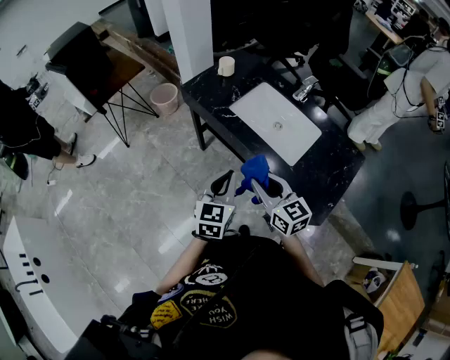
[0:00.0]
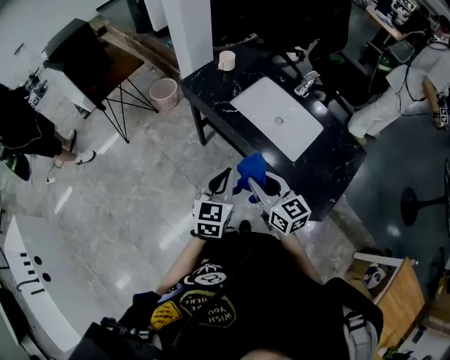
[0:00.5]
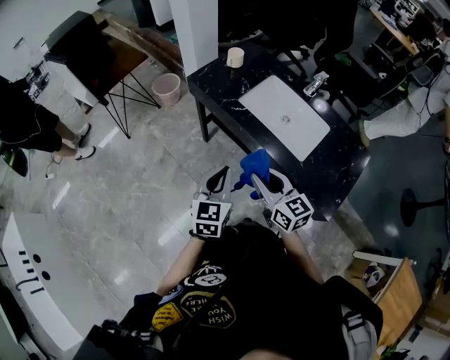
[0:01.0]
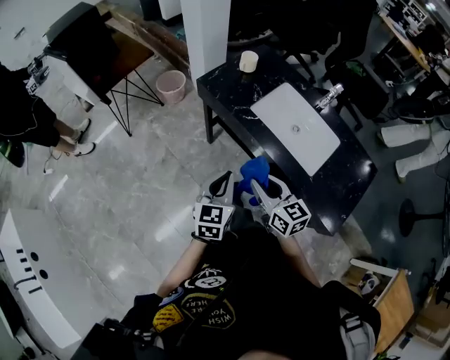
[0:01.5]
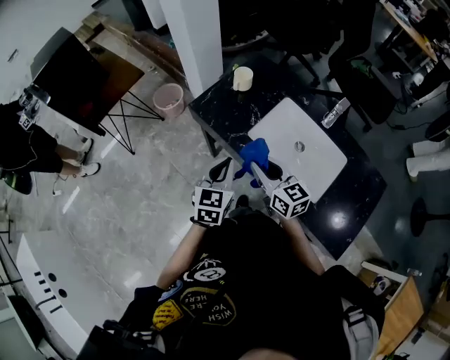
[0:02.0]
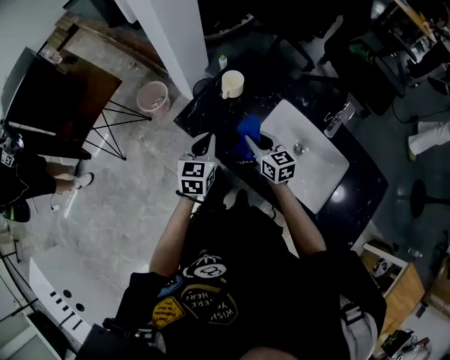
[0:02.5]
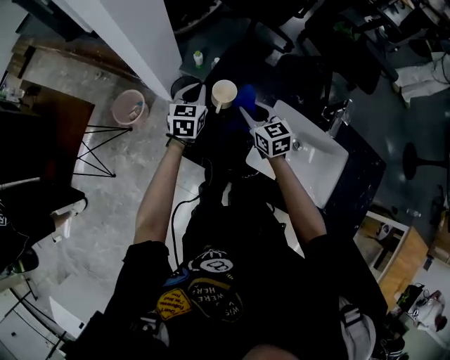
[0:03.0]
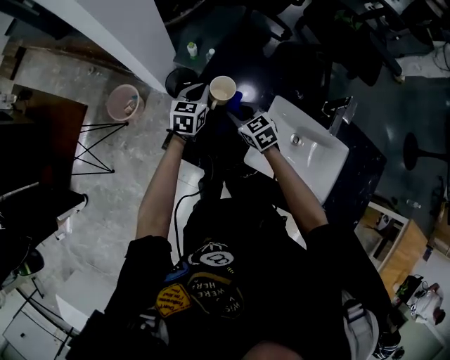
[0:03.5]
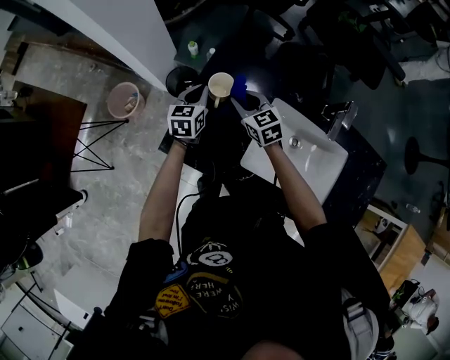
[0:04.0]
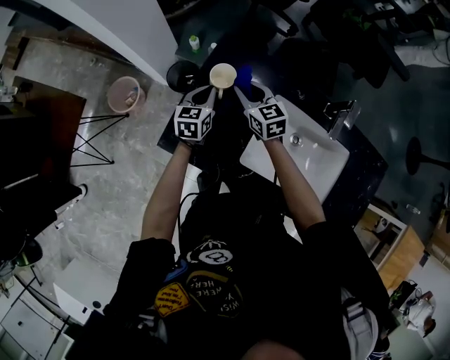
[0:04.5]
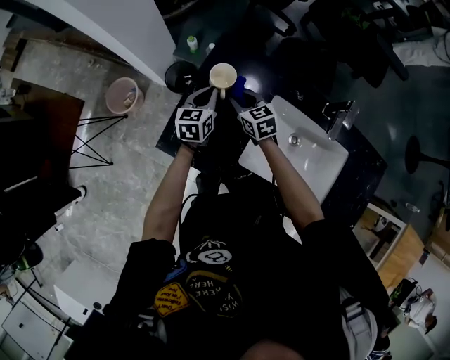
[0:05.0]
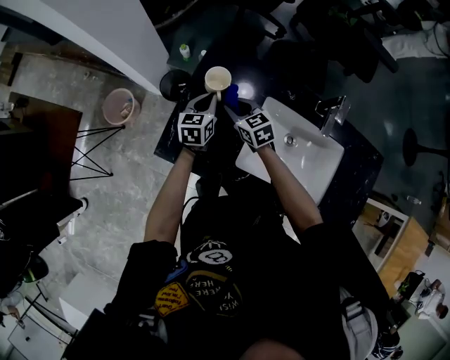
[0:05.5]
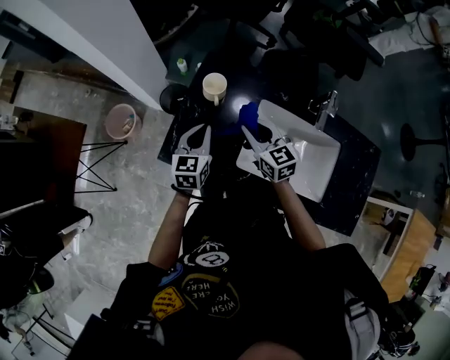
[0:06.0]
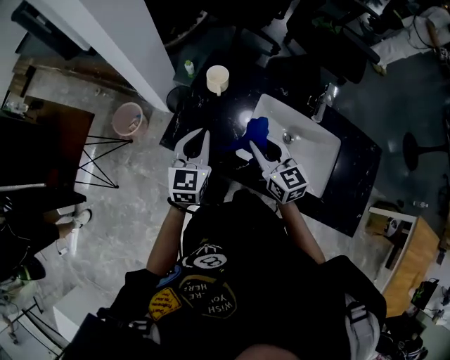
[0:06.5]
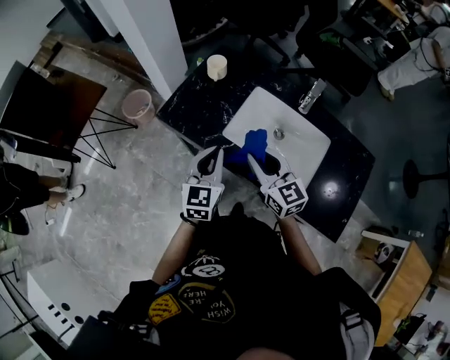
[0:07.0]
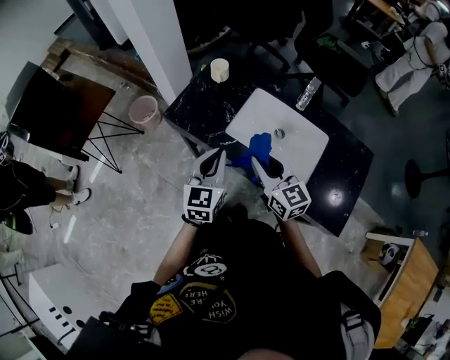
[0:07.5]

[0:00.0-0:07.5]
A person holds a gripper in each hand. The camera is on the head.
0:00.0 to 0:02.0: Both grippers move forward, some 25 cm.
0:02.0 to 0:04.0: The grippers both shift forward by roughly 40 cm. The right gripper turns by approximately 20 degrees.
0:04.0 to 0:05.5: The left gripper heads to the right, covering roughly 5 cm.
0:05.5 to 0:07.5: Both grippers move backward and upward, about 40 cm. The left gripper rotates about 20 degrees, while the right gripper turns by about 30 degrees.

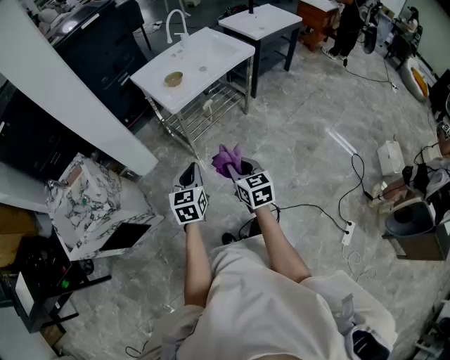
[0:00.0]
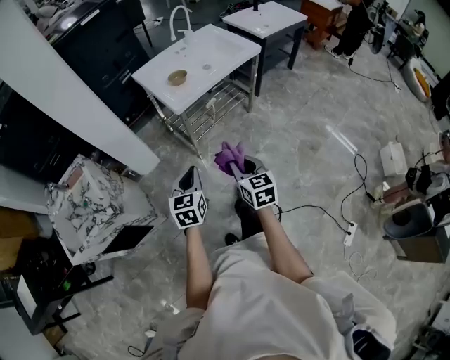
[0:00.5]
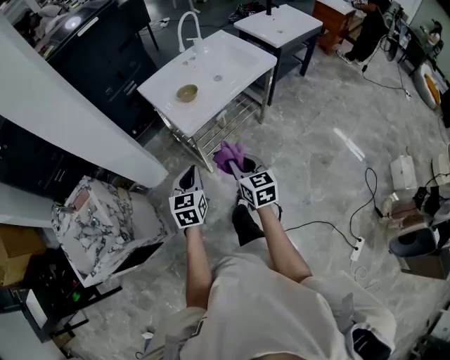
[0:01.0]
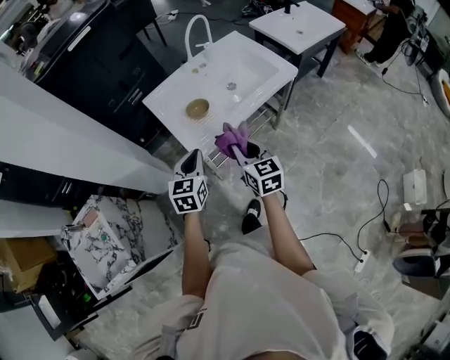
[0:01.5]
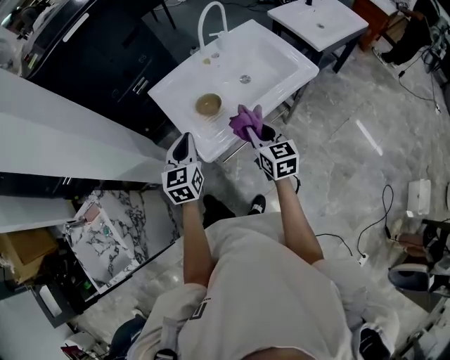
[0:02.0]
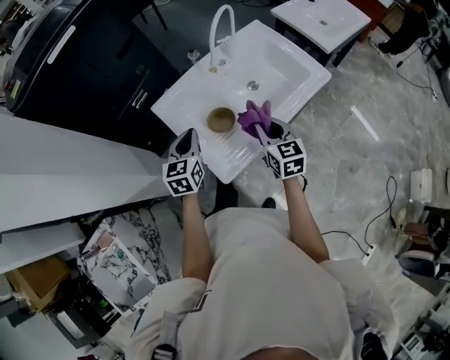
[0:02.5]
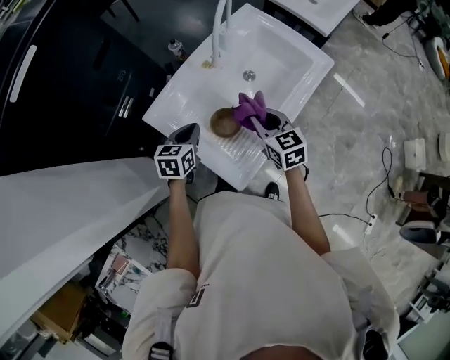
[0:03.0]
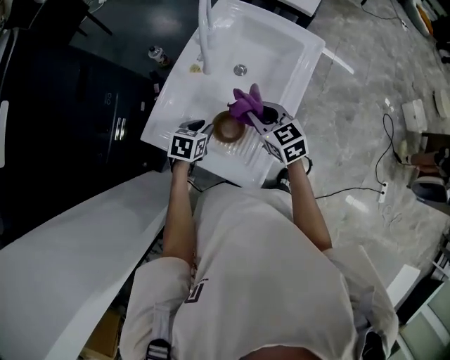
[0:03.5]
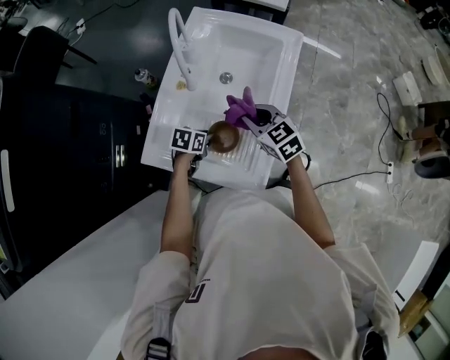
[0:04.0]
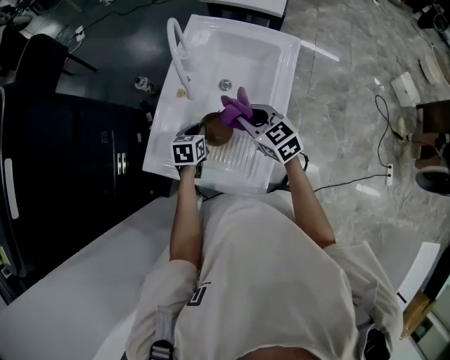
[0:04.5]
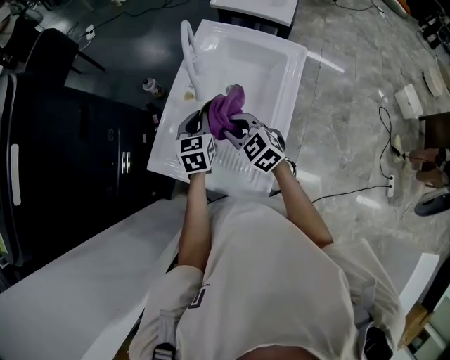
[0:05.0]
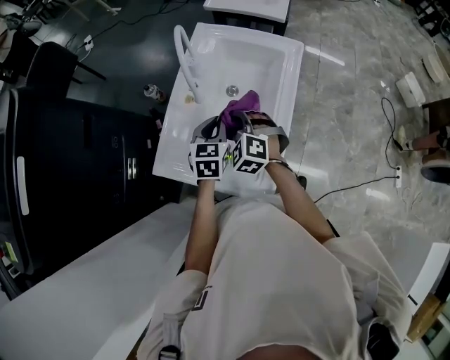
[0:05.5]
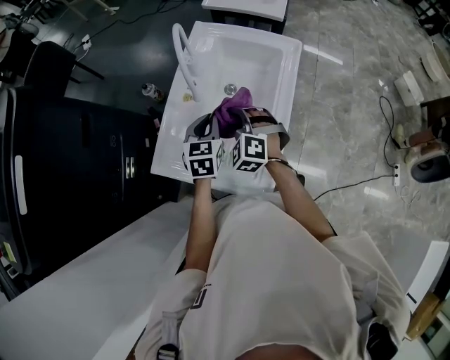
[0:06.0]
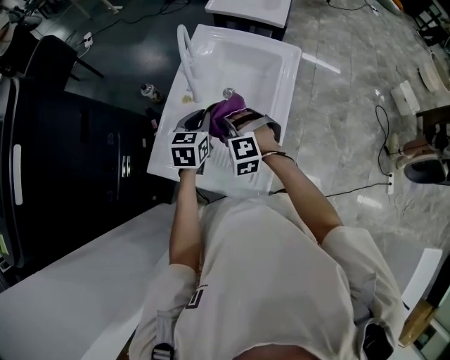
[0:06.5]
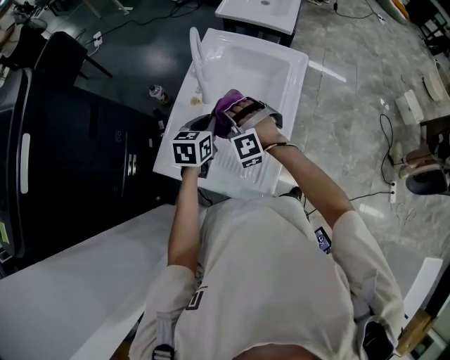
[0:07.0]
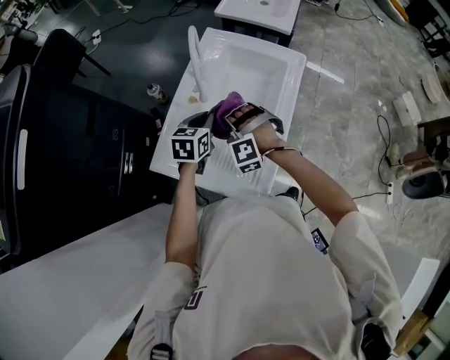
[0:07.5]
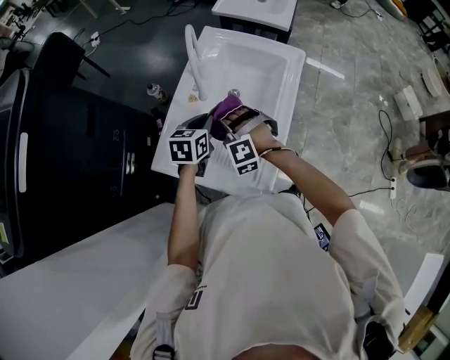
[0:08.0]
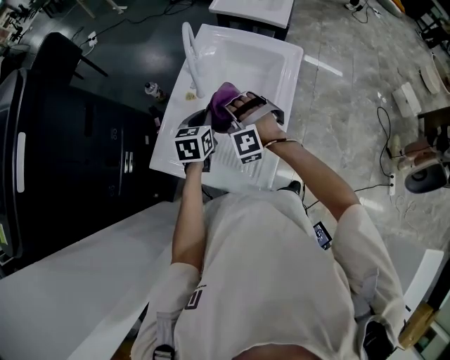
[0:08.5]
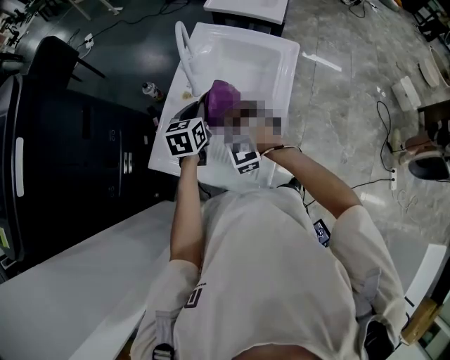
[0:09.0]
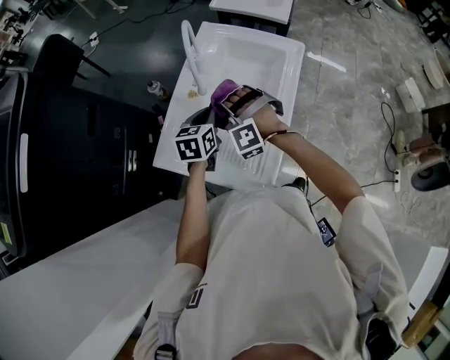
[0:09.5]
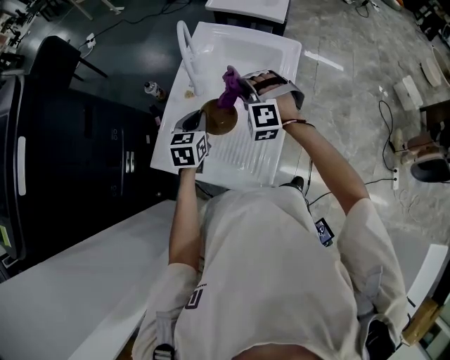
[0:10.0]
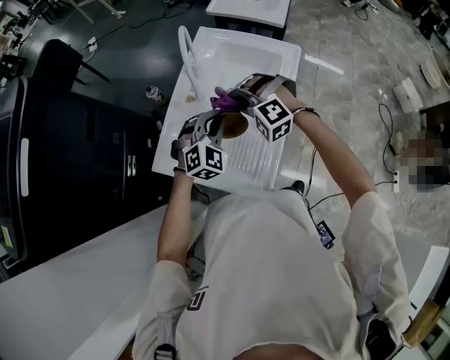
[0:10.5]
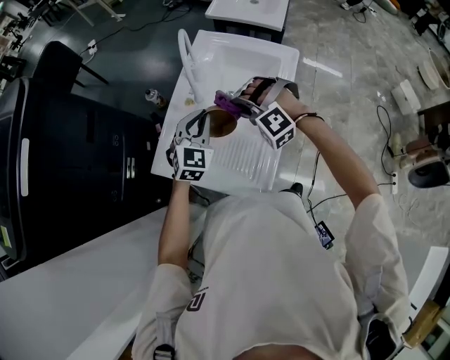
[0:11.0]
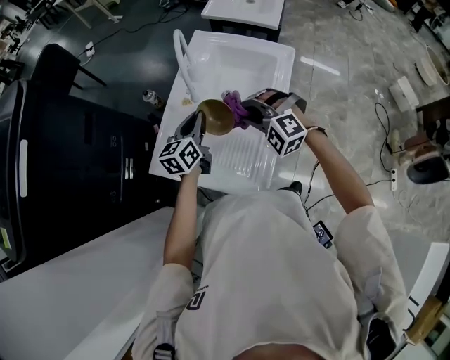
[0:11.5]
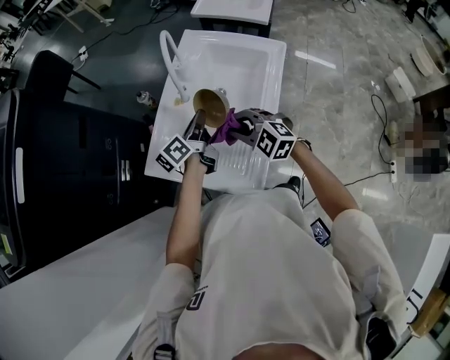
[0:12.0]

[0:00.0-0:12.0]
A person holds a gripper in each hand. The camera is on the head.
0:00.0 to 0:02.0: The grippers both shift forward by about 40 cm.
0:02.0 to 0:04.0: The right gripper changes place by approximately 20 cm, and turns by approximately 20 degrees. Meanwhile the left gripper changes place by approximately 35 cm, angles its fingers downward, by about 50 degrees, and opens.
0:04.0 to 0:06.0: The right gripper changes place by approximately 5 cm, and twists some 40 degrees counterclockwise, seen from behind, while the left gripper heads upward, covering about 15 cm, and rotates some 40 degrees.
0:06.0 to 0:08.0: The right gripper moves some 5 cm, and rotates roughly 40 degrees.
0:08.0 to 0:10.0: The right gripper moves to the right, forward and upward, some 15 cm.
0:10.0 to 0:12.0: The right gripper is displaced backward by some 10 cm, and changes its angle by about 40 degrees; the left gripper rolls counterclockwise, seen from behind, by approximately 50 degrees.

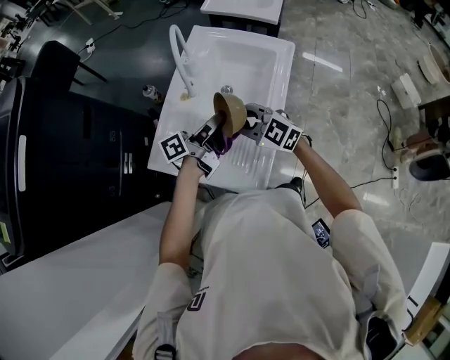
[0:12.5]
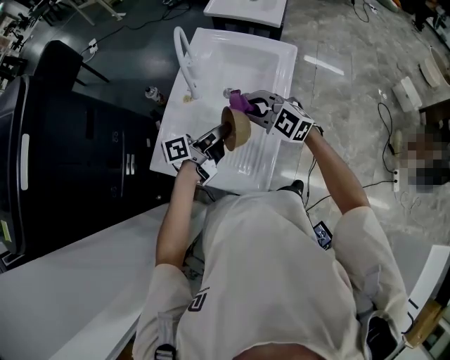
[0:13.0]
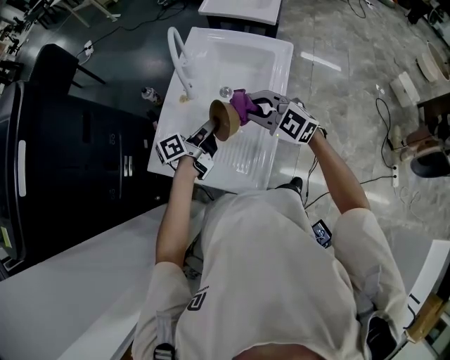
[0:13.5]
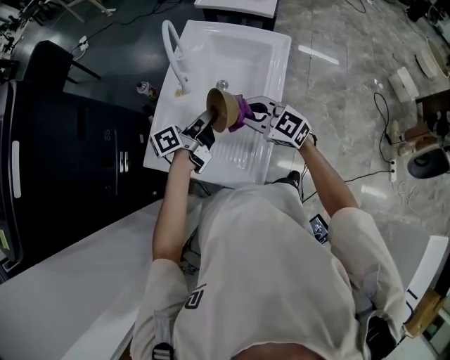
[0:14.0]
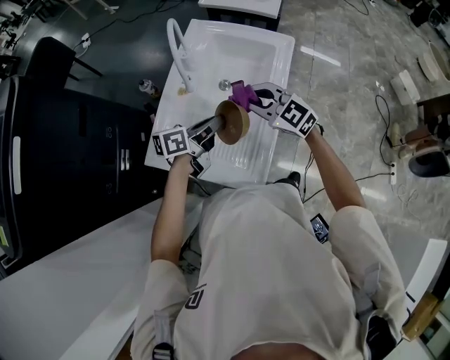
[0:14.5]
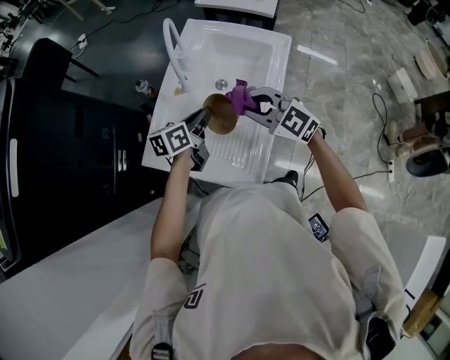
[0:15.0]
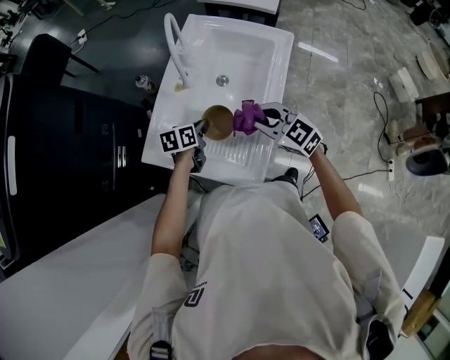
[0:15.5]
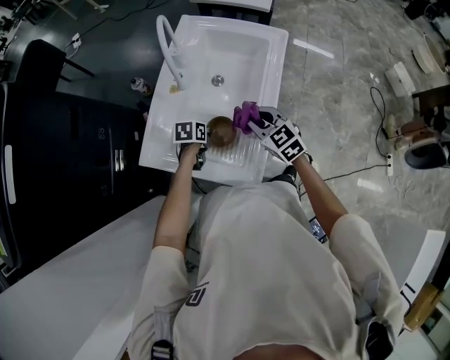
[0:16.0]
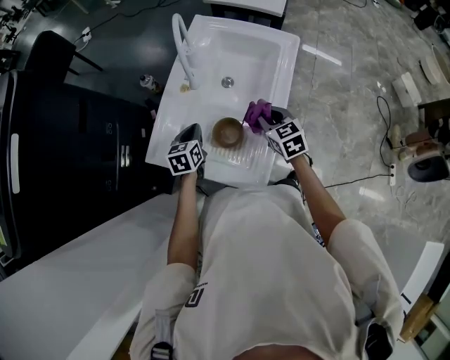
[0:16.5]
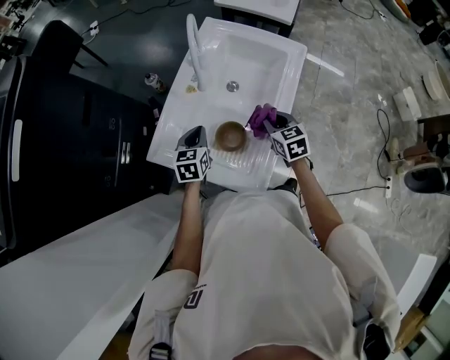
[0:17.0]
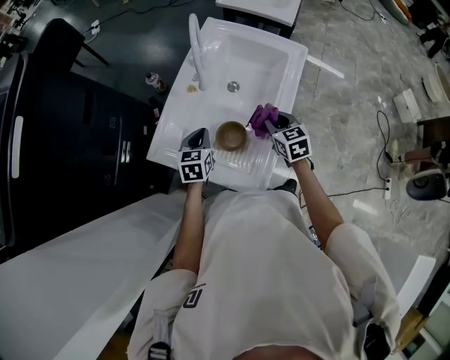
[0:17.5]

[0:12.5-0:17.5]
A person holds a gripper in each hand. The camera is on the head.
0:12.5 to 0:15.0: The right gripper shifts by roughly 5 cm, while the left gripper is displaced downward by some 5 cm, and points its fingers about 30 degrees further downward.
0:15.0 to 0:17.5: The left gripper goes roughly 10 cm downward and to the left, and changes its angle by some 40 degrees. The right gripper shifts roughly 15 cm downward and to the right, and turns by roughly 50 degrees.

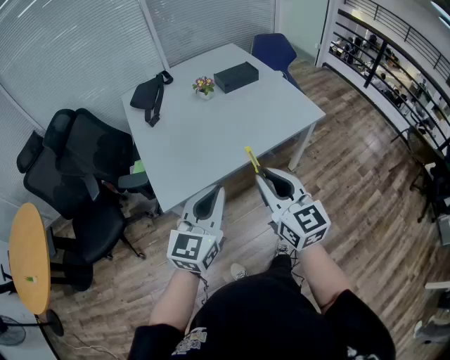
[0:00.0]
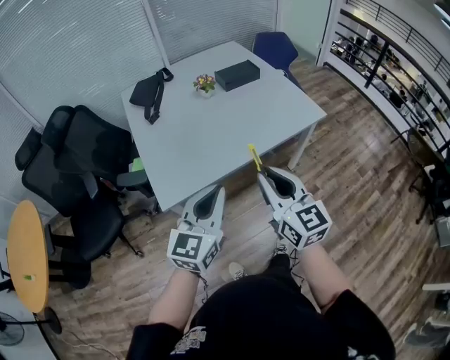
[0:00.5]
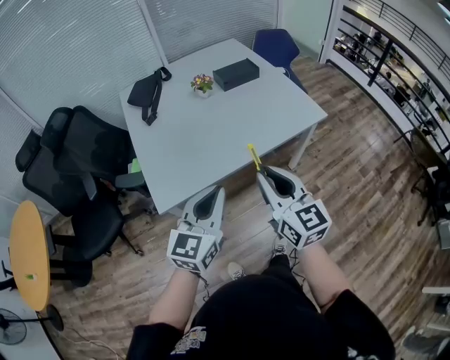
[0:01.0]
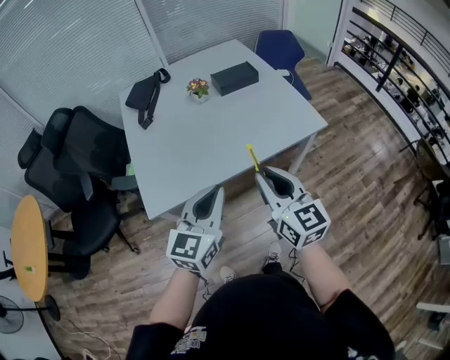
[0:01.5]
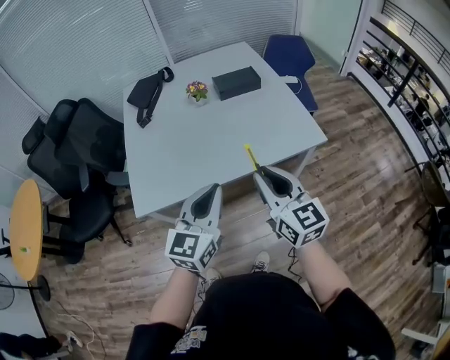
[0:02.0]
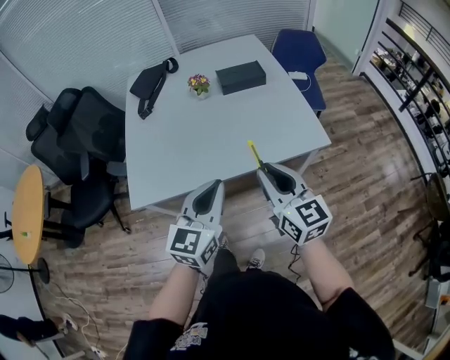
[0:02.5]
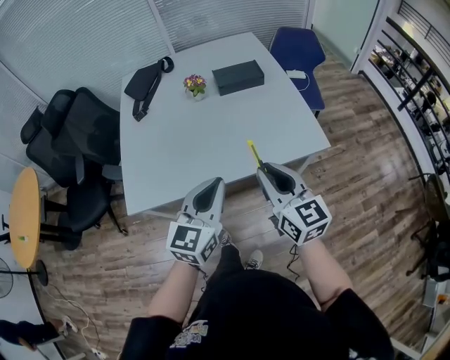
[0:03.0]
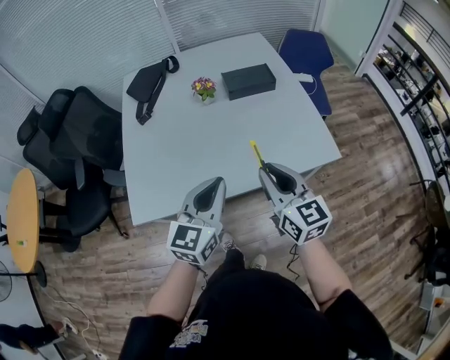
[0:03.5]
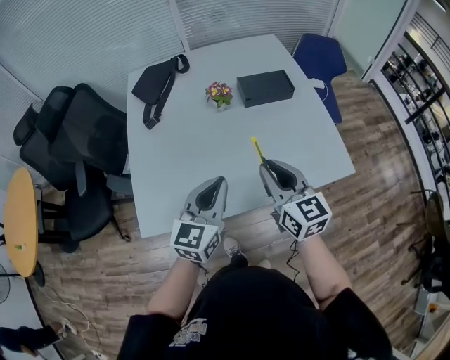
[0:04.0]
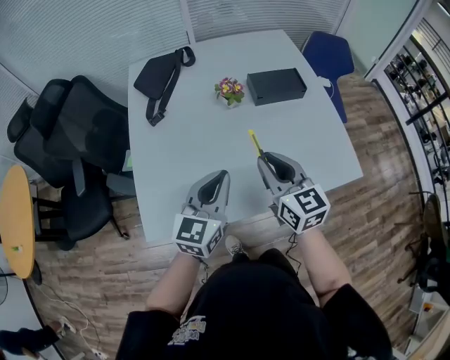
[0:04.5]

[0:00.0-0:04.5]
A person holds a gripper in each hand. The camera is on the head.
0:00.0 to 0:02.0: Both grippers move to the right and forward, some 20 cm.
0:02.0 to 0:04.5: Both grippers travel together forward and to the left, approximately 25 cm.
